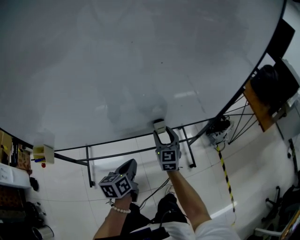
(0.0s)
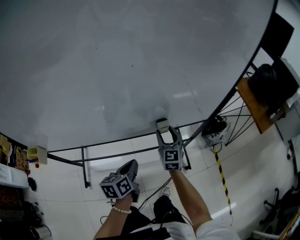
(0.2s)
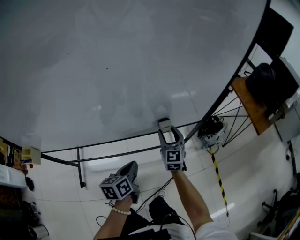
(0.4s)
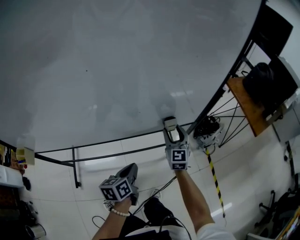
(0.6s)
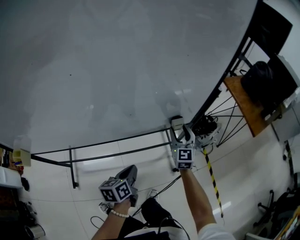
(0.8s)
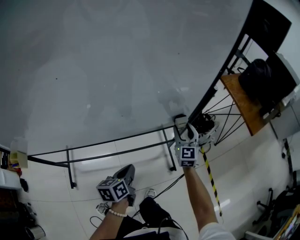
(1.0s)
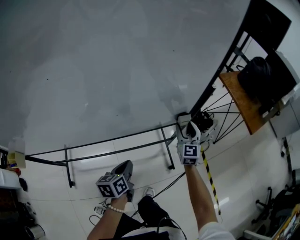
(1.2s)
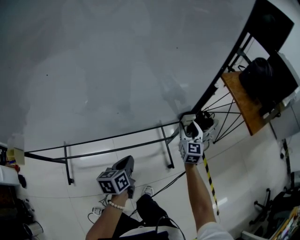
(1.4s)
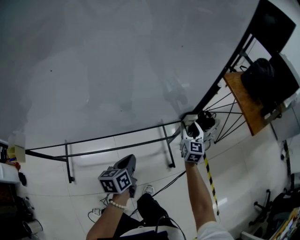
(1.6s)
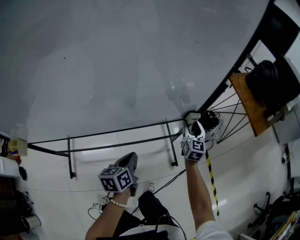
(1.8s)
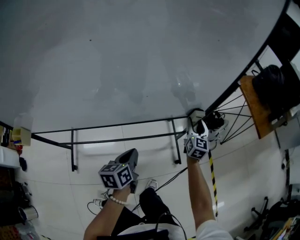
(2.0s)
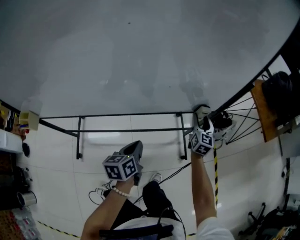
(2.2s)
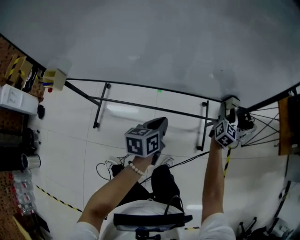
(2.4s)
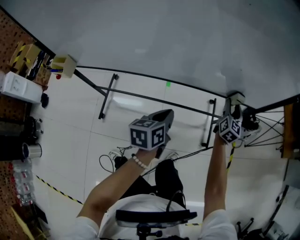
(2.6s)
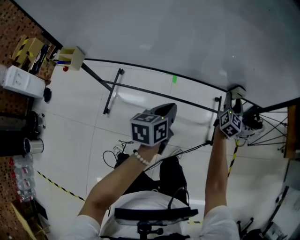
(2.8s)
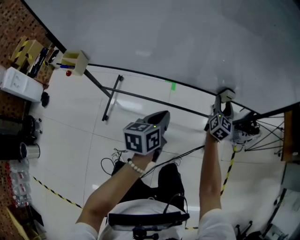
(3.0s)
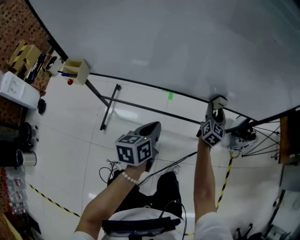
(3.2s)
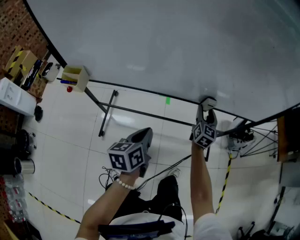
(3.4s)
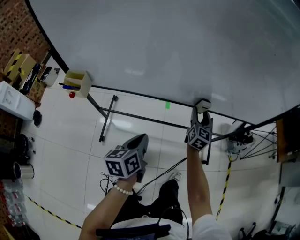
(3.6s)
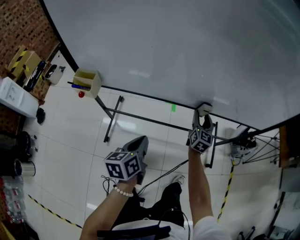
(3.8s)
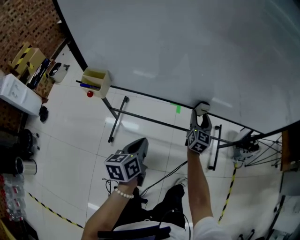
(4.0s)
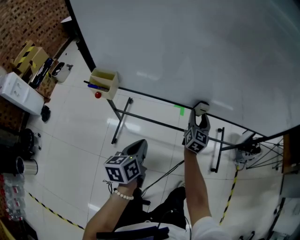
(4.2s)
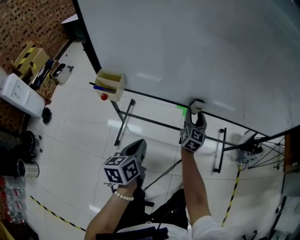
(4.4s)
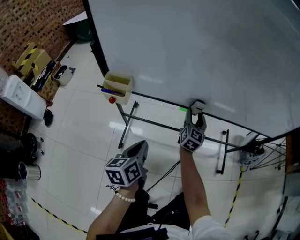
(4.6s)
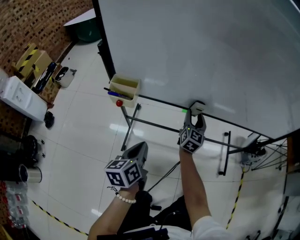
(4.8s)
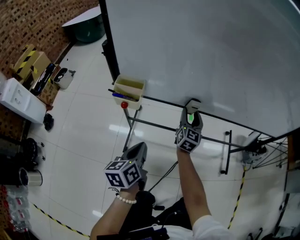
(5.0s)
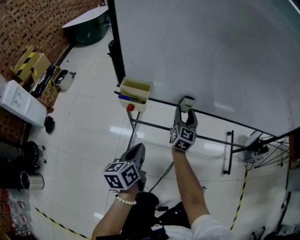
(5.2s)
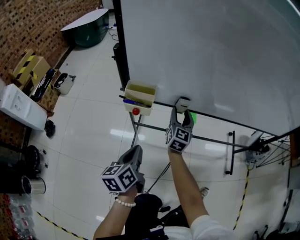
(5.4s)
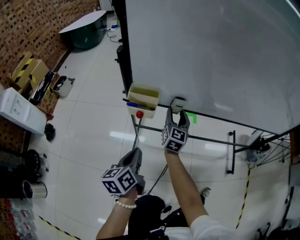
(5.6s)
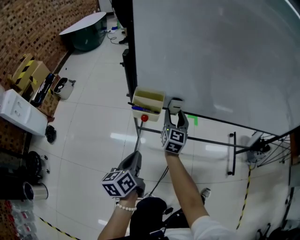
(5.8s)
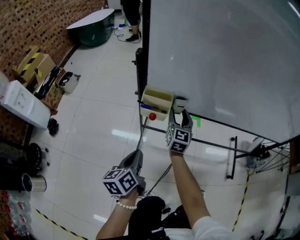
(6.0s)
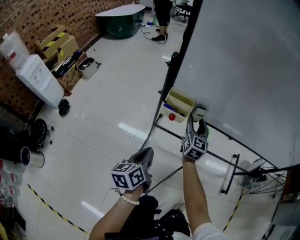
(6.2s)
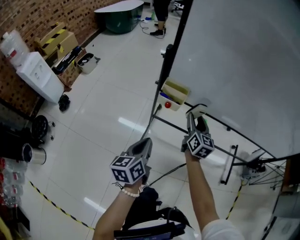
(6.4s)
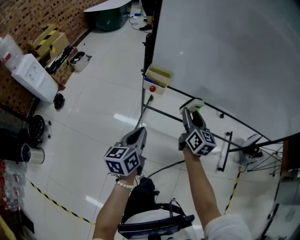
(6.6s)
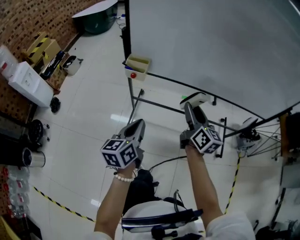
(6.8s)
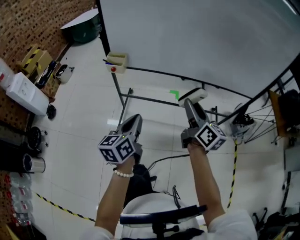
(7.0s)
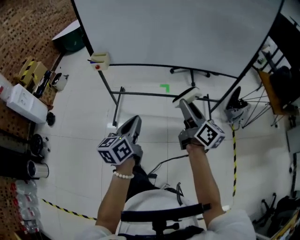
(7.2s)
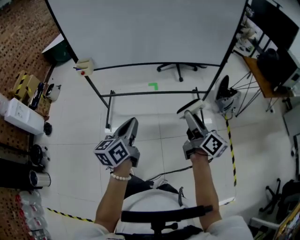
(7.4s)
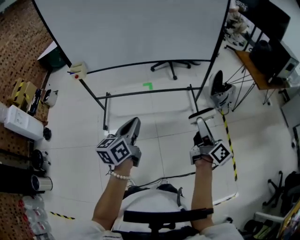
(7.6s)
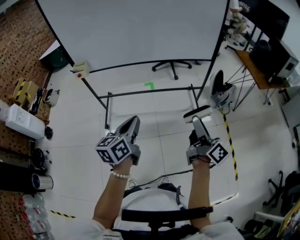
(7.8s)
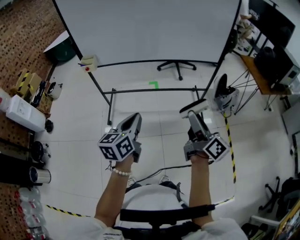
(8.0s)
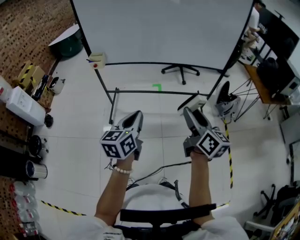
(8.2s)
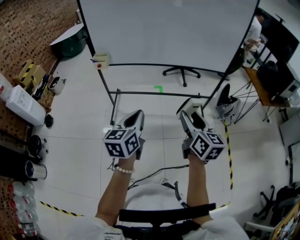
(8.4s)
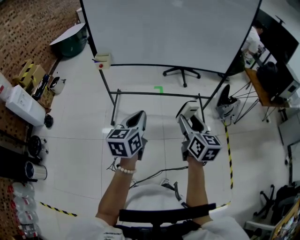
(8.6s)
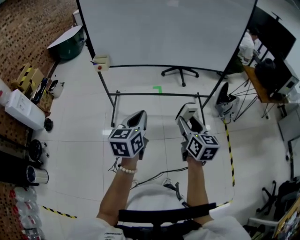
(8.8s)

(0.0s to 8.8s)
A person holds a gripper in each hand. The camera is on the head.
0.0s - 1.4s: The right gripper goes roughly 40 cm to the right and forward, while the left gripper goes approximately 25 cm to the right and forward.
1.4s - 3.0s: Both grippers travel together to the left and backward, some 35 cm.
3.0s - 4.4s: Both grippers travel together to the left, about 35 cm.
4.4s - 5.8s: The two grippers go some 25 cm to the left.
5.8s - 7.4s: Both grippers are carried to the right and backward, some 70 cm. The left gripper heads upward, covering roughly 20 cm, and rotates about 20 degrees; the right gripper twists approximately 40 degrees clockwise, seen from behind.
7.4s - 8.8s: The left gripper shifts some 10 cm to the left and backward, while the right gripper travels to the left and backward by roughly 15 cm, and swivels some 30 degrees.

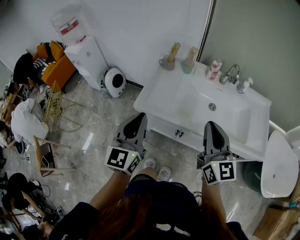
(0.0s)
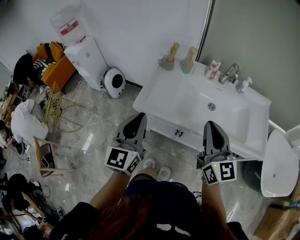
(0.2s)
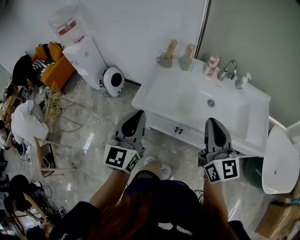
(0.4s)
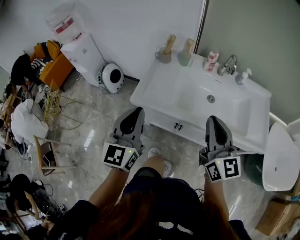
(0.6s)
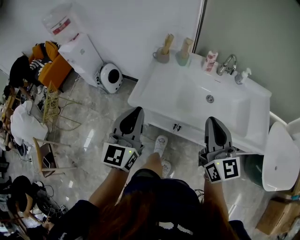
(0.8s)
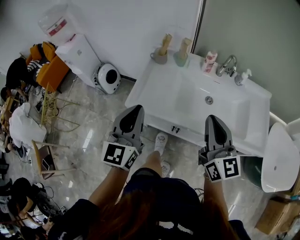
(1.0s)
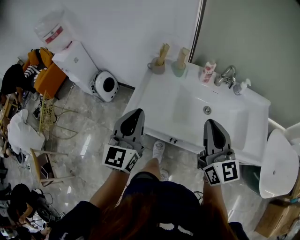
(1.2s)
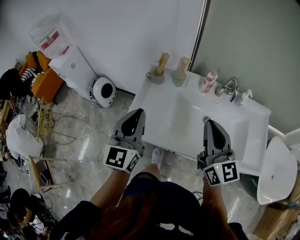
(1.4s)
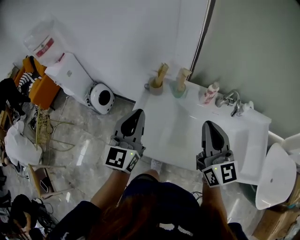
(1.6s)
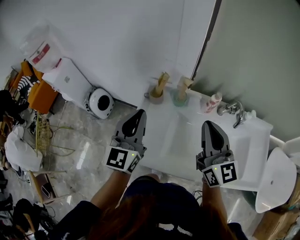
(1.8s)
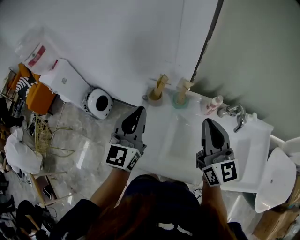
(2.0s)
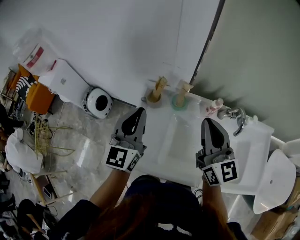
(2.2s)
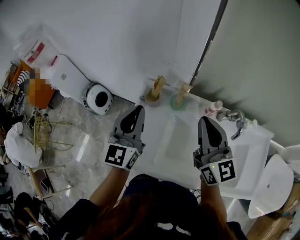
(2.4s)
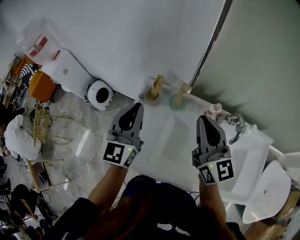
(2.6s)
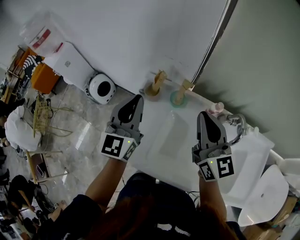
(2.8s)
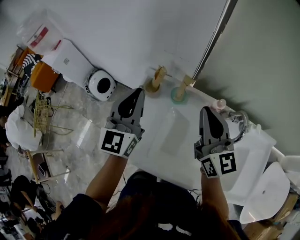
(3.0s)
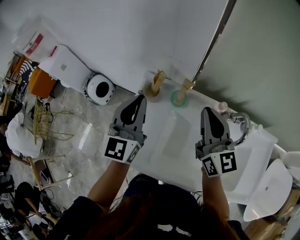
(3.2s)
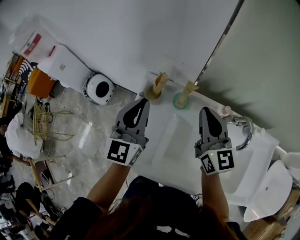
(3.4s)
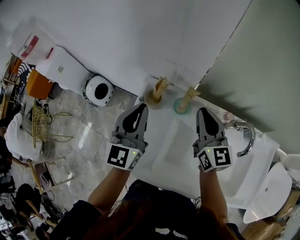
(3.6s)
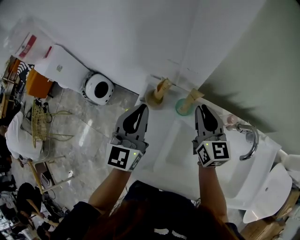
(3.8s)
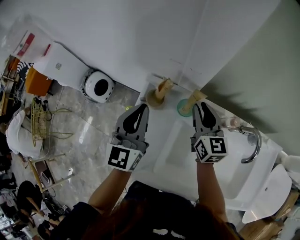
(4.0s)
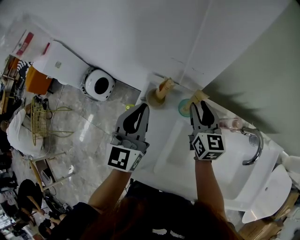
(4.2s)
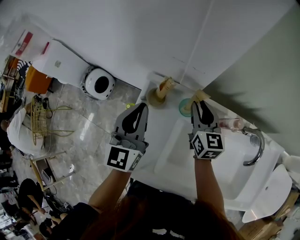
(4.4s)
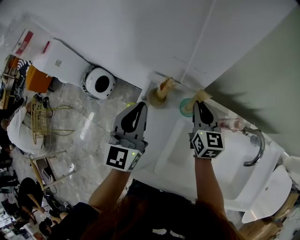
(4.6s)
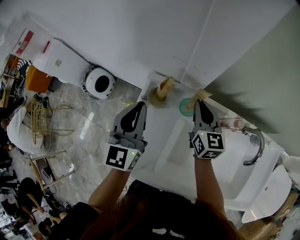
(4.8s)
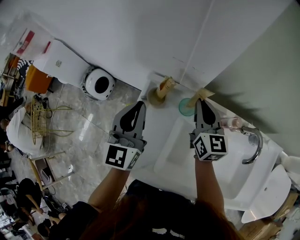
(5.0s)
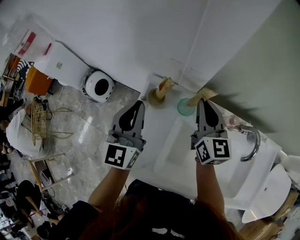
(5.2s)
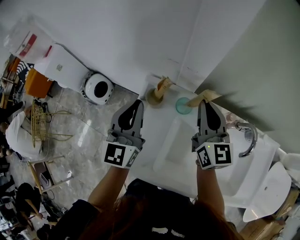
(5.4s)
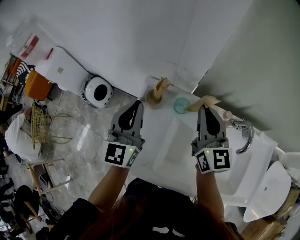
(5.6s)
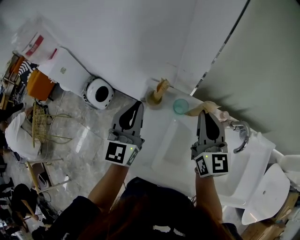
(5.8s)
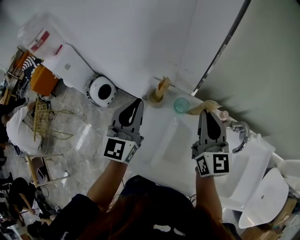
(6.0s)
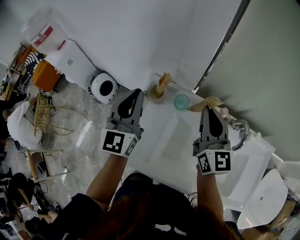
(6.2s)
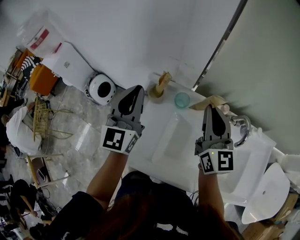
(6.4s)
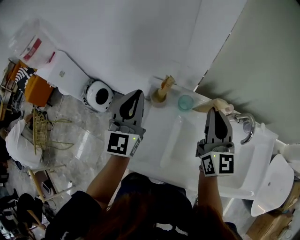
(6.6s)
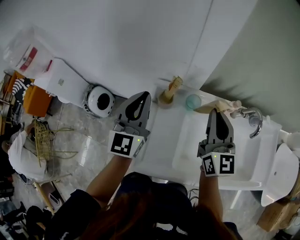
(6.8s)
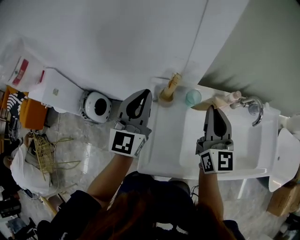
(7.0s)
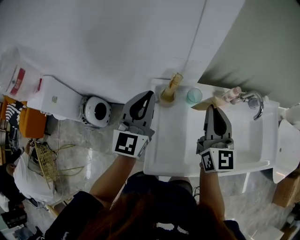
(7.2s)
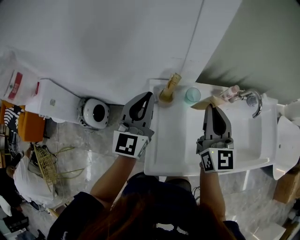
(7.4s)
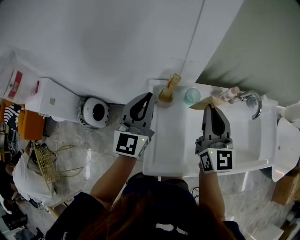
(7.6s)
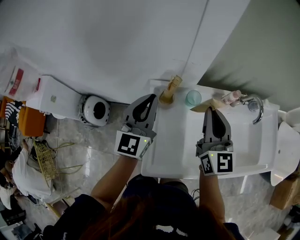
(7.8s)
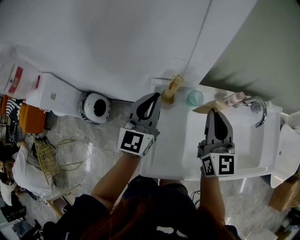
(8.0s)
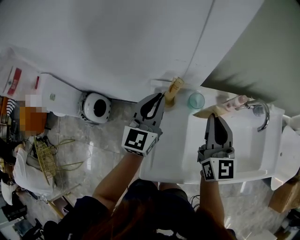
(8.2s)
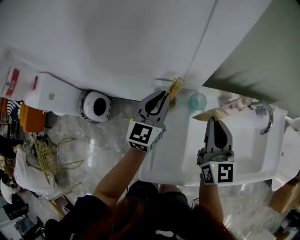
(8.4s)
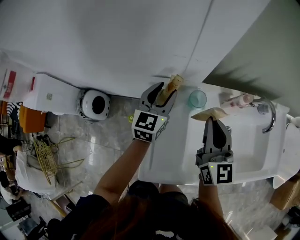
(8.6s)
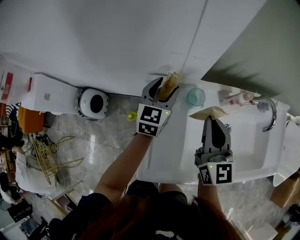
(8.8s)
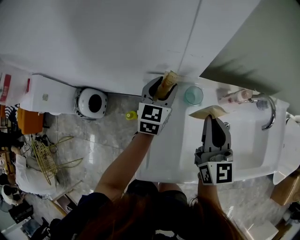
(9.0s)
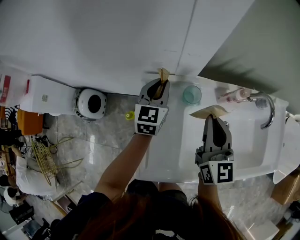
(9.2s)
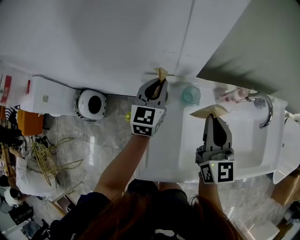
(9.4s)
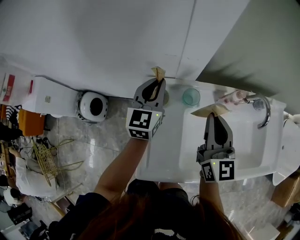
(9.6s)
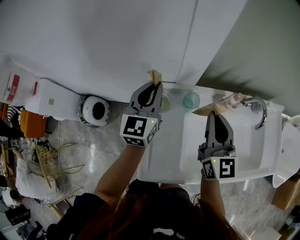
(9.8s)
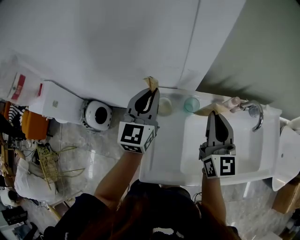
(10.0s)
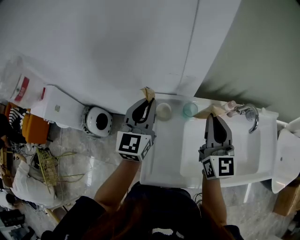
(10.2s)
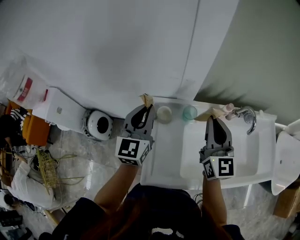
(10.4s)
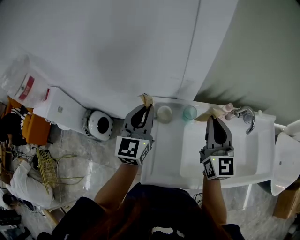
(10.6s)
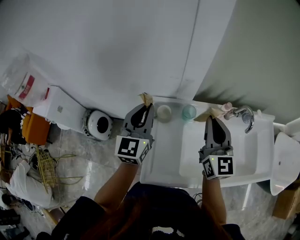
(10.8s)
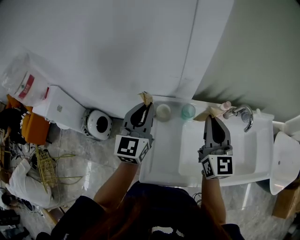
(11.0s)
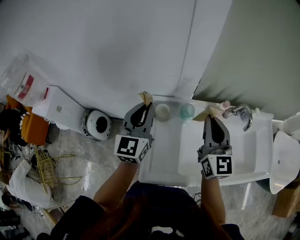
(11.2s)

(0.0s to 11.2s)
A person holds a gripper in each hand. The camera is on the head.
0.0s - 1.6s: The grippers both shift forward by roughly 25 cm.
1.6s - 3.2s: Both grippers travel together forward, approximately 20 cm.
3.2s - 4.8s: The left gripper travels downward and forward by approximately 10 cm; the right gripper shifts roughly 20 cm downward and forward, and opens and closes again.
4.8s - 6.4s: The left gripper heads upward, covering about 10 cm. The right gripper is displaced upward and backward by about 20 cm.
6.4s - 8.0s: The right gripper heads to the left, covering some 10 cm, while the left gripper moves downward, about 5 cm, and turns by roughly 20 degrees.
8.0s - 9.6s: The left gripper goes approximately 10 cm forward and downward, and opens and closes again. Meanwhile the right gripper ends up approximately 5 cm from where it was.
9.6s - 11.2s: The right gripper goes approximately 10 cm upward. Meanwhile the left gripper is displaced upward and backward by about 20 cm.

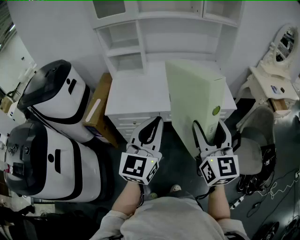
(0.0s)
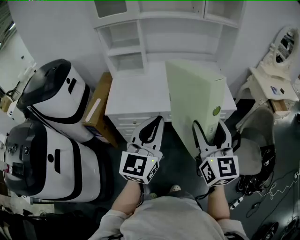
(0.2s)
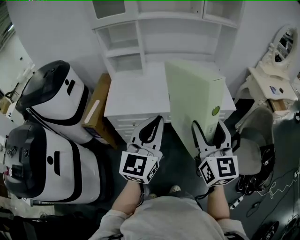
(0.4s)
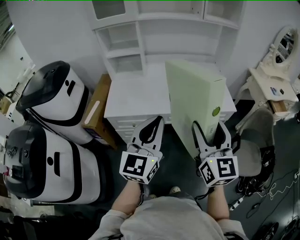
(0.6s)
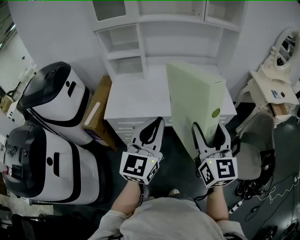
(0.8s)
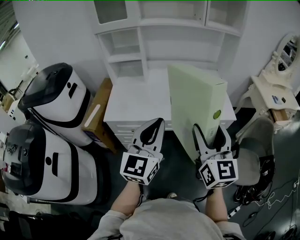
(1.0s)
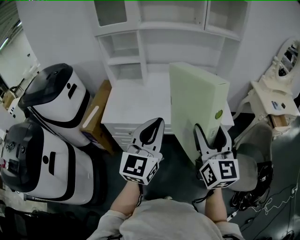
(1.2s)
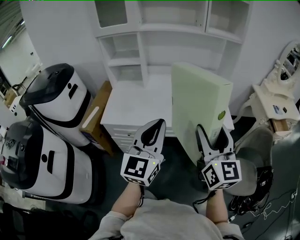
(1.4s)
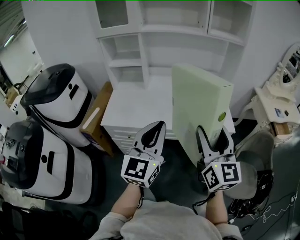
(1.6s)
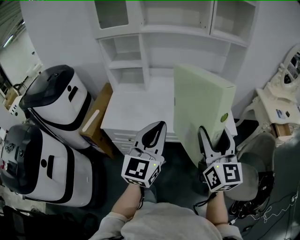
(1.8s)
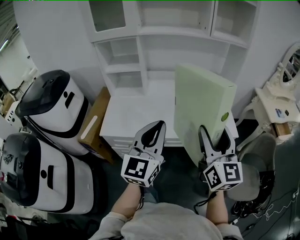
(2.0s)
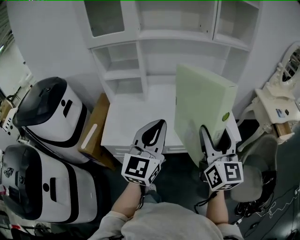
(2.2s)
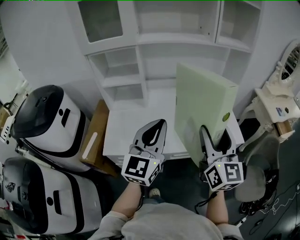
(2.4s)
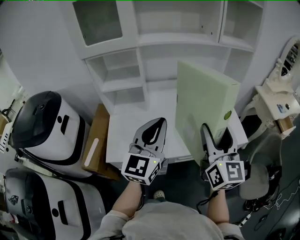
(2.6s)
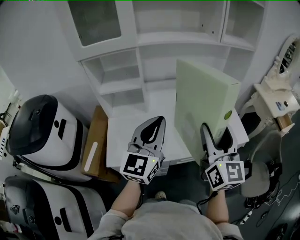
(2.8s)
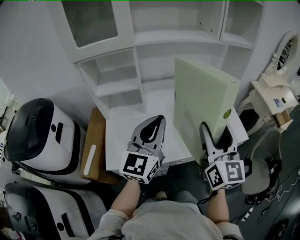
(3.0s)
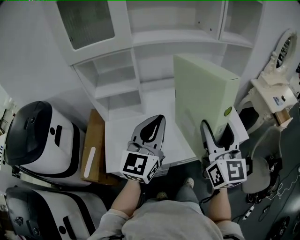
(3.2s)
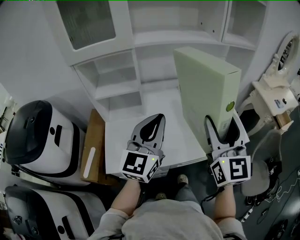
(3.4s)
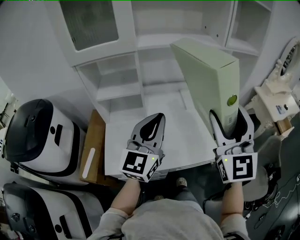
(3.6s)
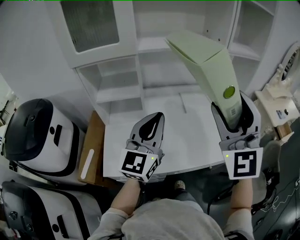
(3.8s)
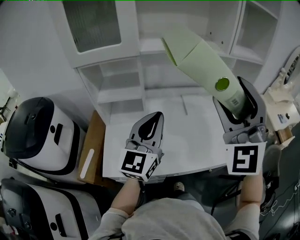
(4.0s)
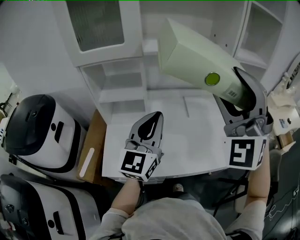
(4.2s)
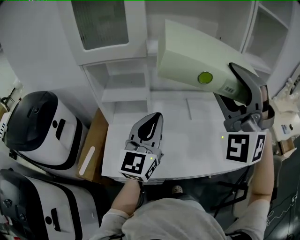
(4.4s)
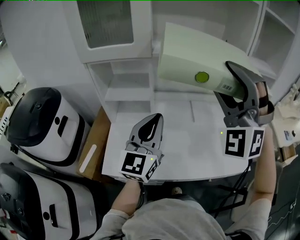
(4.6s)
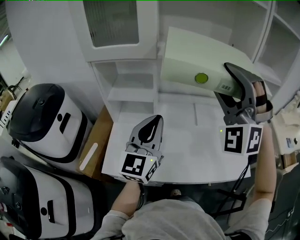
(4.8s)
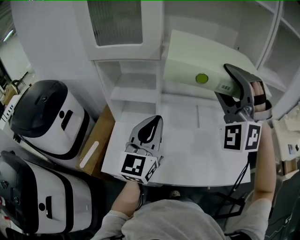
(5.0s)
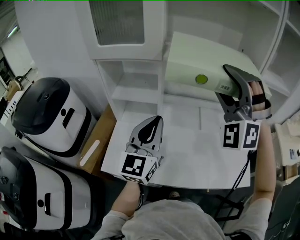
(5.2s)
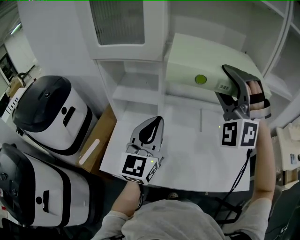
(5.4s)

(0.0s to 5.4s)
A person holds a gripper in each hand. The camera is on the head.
0.0s - 1.4s: The two grippers go approximately 10 cm forward and to the right.
1.4s - 2.8s: The two grippers go some 25 cm forward and to the left.
2.8s - 4.0s: The left gripper shifts approximately 10 cm forward. The right gripper is displaced upward and forward by about 15 cm, and twists approximately 60 degrees counterclockwise, seen from behind.
4.0s - 5.4s: The right gripper moves forward, roughly 15 cm, and changes its angle by some 30 degrees; the left gripper travels forward by roughly 5 cm.
